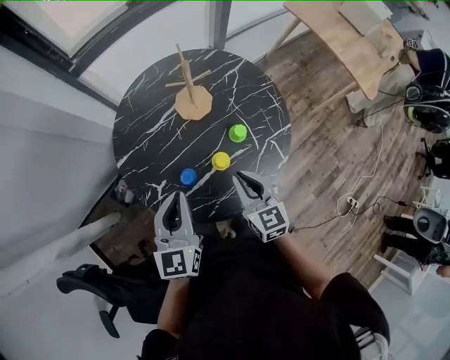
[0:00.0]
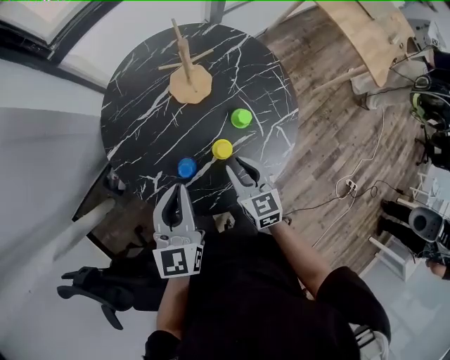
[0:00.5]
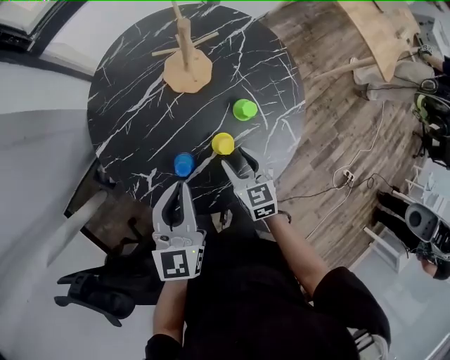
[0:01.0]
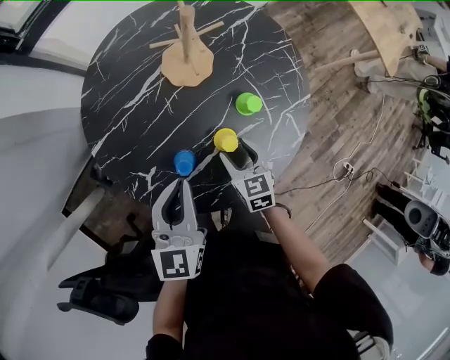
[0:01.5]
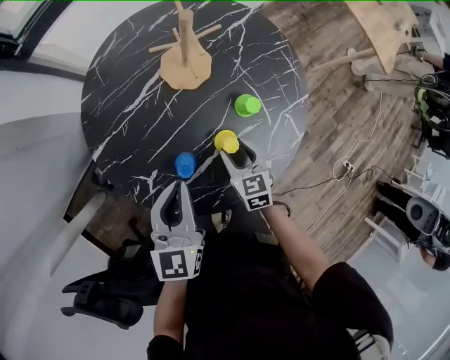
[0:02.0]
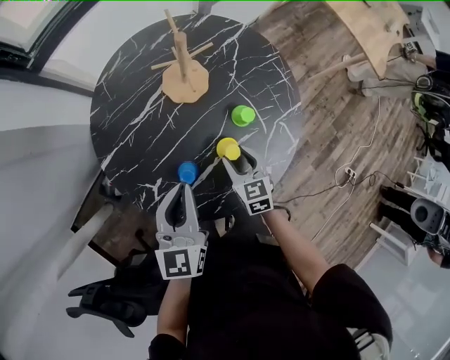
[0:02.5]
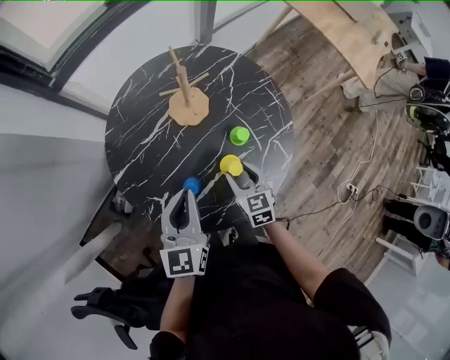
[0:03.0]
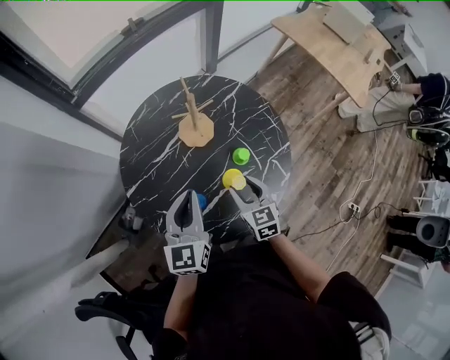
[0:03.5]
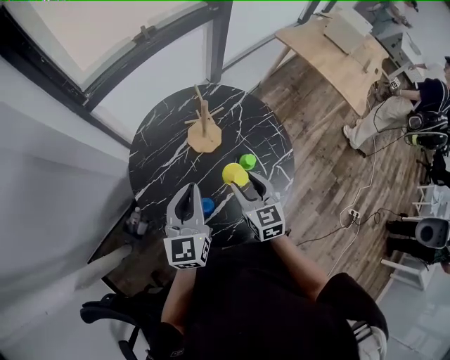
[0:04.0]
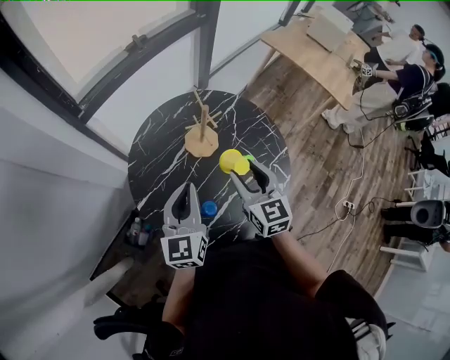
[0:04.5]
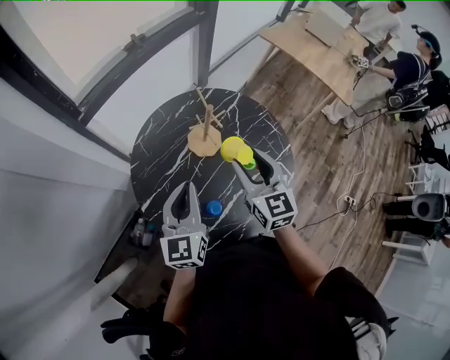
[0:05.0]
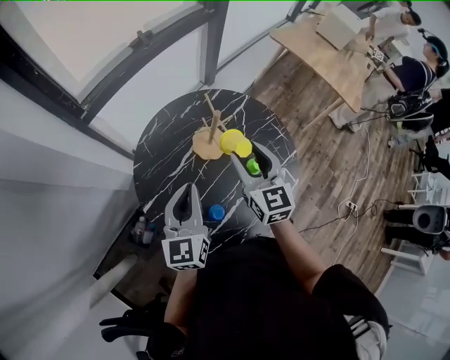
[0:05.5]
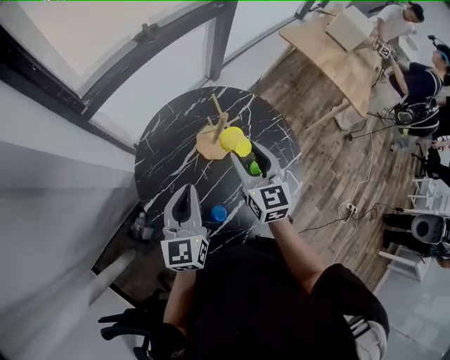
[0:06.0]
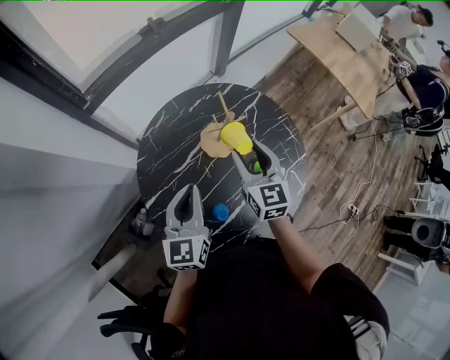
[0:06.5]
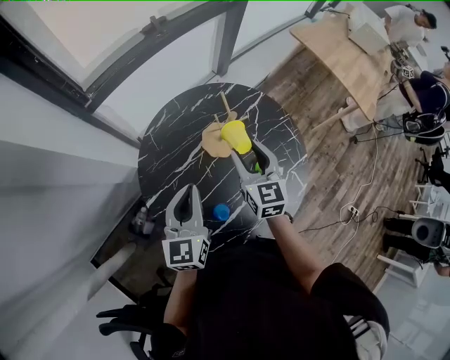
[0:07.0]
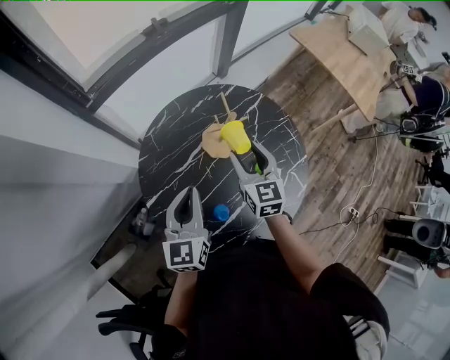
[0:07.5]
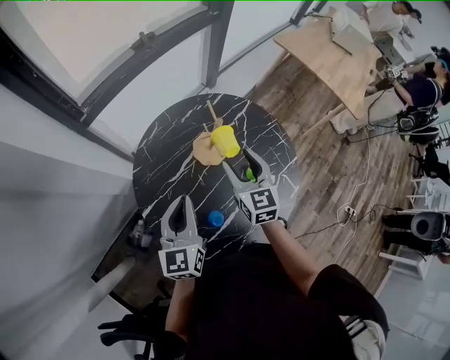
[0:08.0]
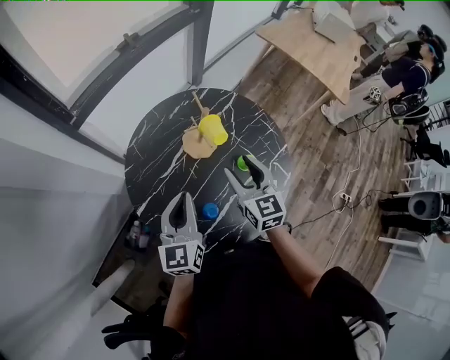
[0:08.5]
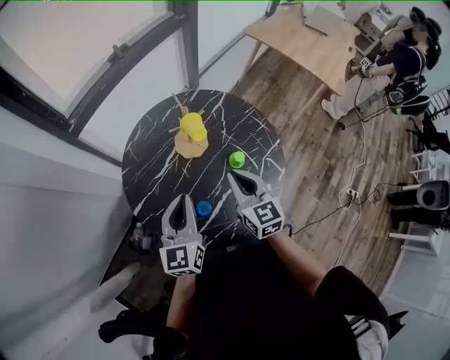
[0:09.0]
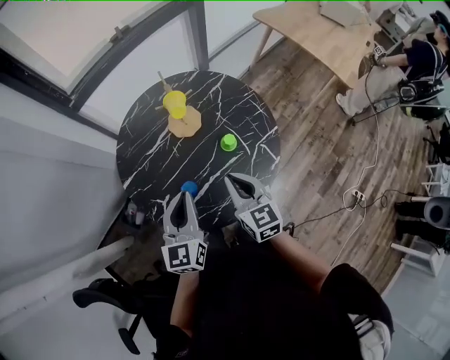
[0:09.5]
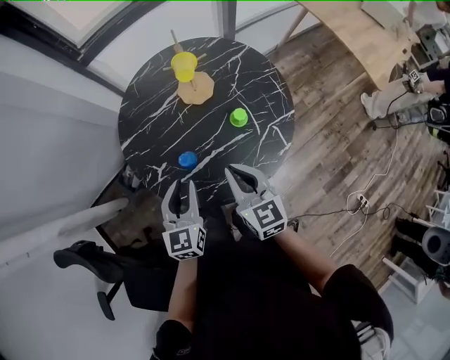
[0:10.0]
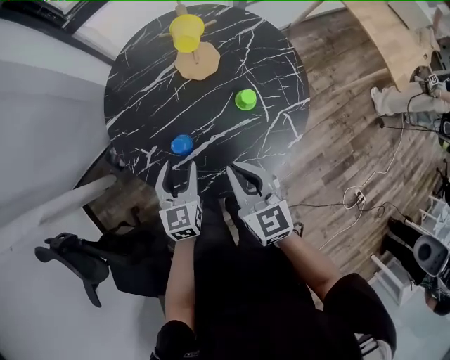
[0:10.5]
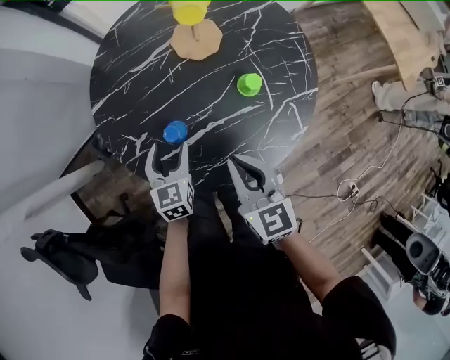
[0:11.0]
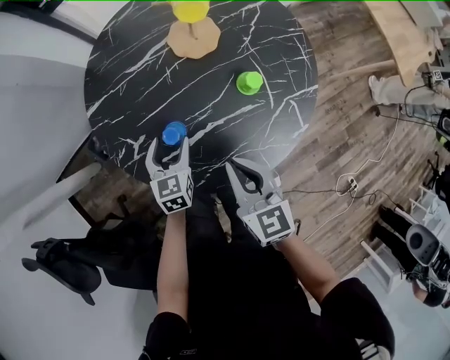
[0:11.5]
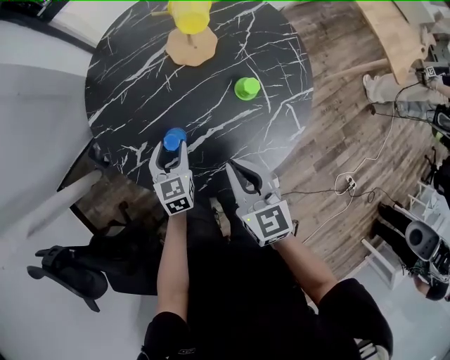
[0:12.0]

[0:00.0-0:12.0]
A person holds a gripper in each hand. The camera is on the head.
0:00.0 to 0:02.0: The left gripper travels downward and forward by roughly 10 cm. Meanwhile the right gripper moves downward, some 20 cm, changes its angle by roughly 20 degrees, and opens.
0:02.0 to 0:04.0: The left gripper goes approximately 15 cm upward, while the right gripper shifts some 25 cm upward.
0:04.0 to 0:06.0: The left gripper goes roughly 10 cm to the left and forward. The right gripper heads forward, upward and to the left, covering roughly 15 cm.
0:06.0 to 0:08.0: The grippers move only a little.
0:08.0 to 0:10.0: The right gripper moves backward, some 25 cm, turns by roughly 20 degrees, and closes up. Meanwhile the left gripper goes some 25 cm backward, to the right and downward.
0:10.0 to 0:12.0: The right gripper is displaced downward by some 10 cm; the left gripper moves downward, approximately 25 cm, and opens its fingers.

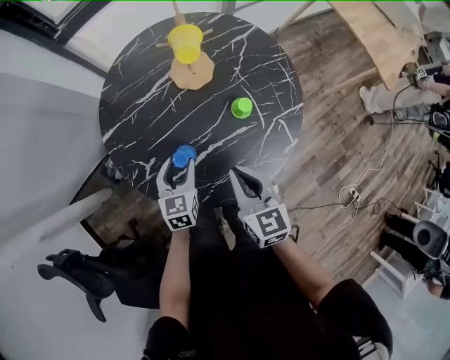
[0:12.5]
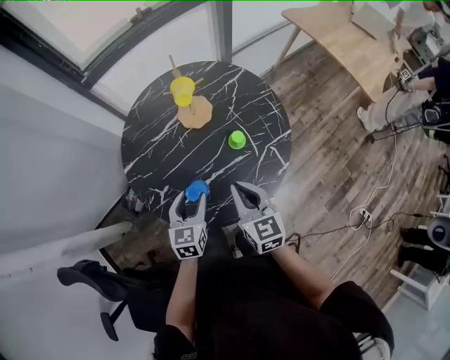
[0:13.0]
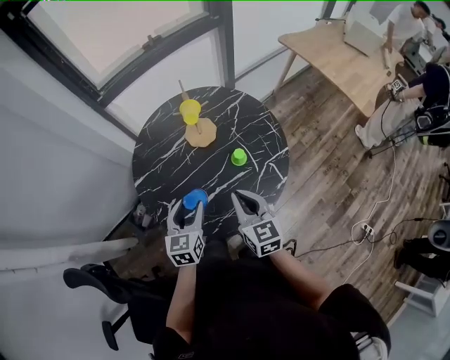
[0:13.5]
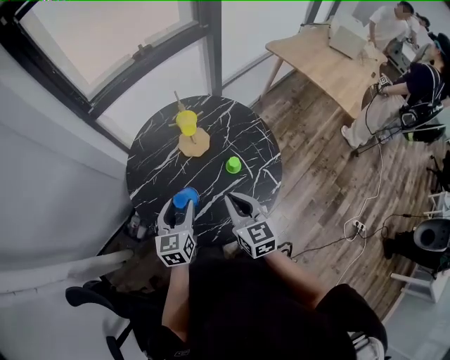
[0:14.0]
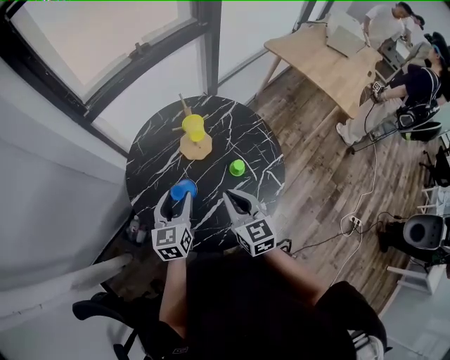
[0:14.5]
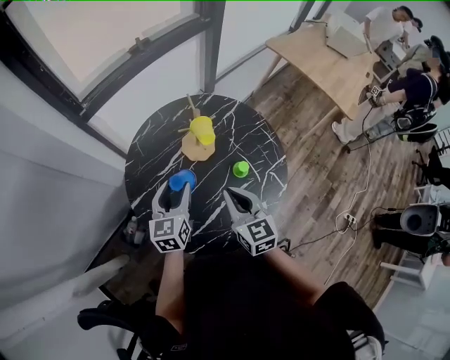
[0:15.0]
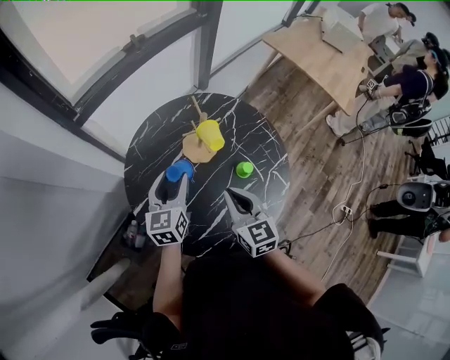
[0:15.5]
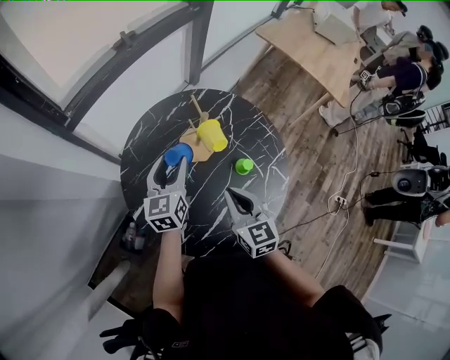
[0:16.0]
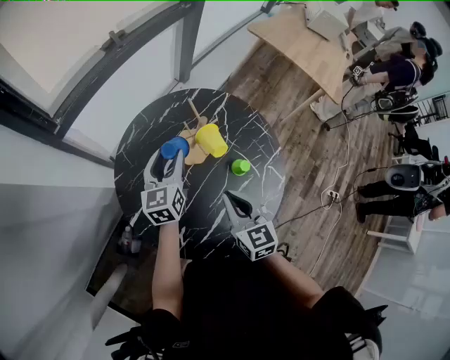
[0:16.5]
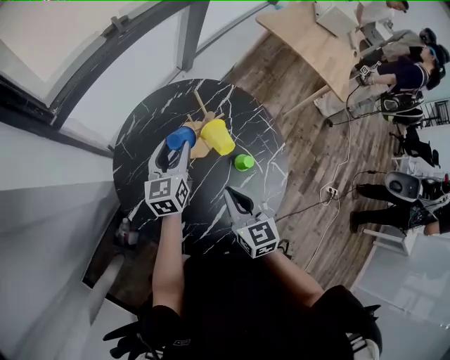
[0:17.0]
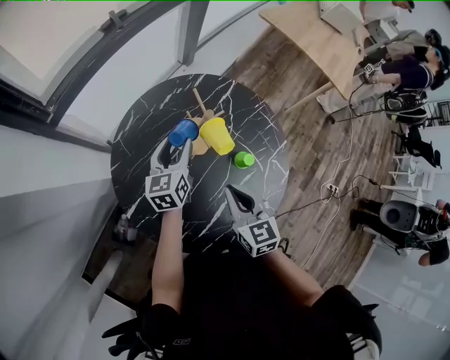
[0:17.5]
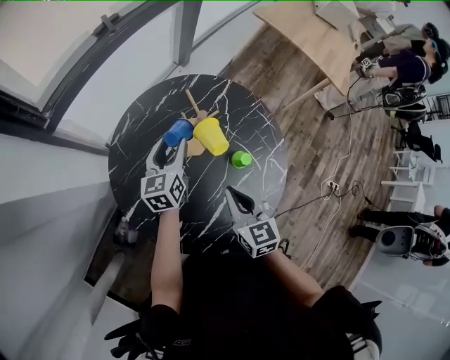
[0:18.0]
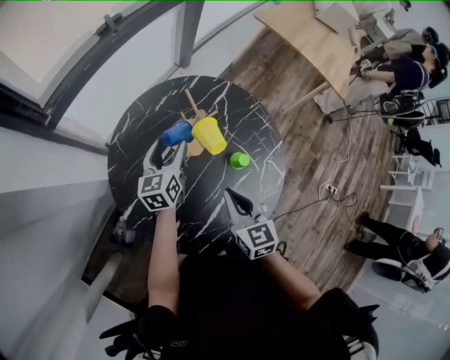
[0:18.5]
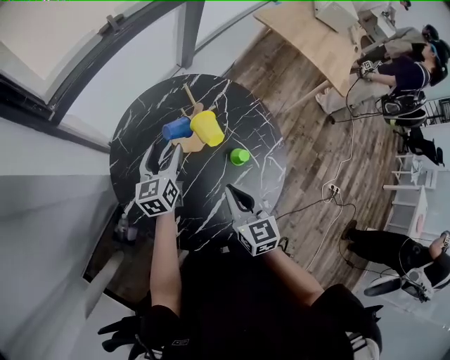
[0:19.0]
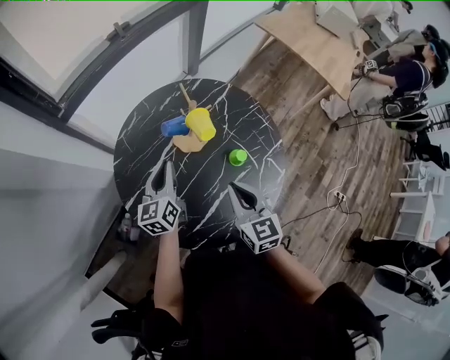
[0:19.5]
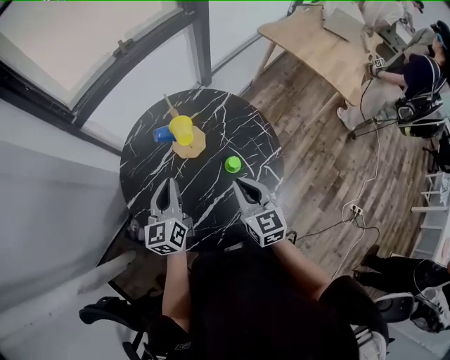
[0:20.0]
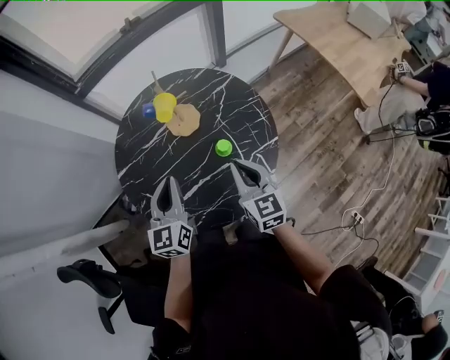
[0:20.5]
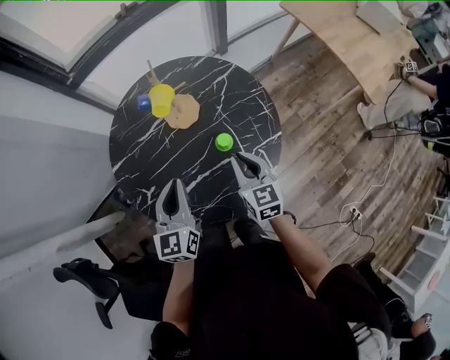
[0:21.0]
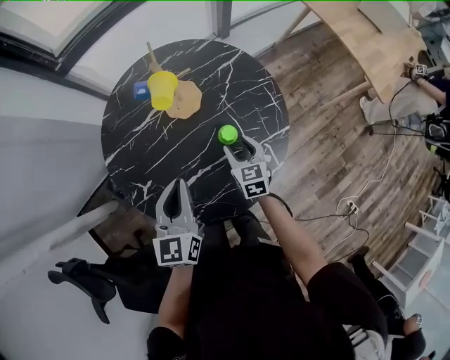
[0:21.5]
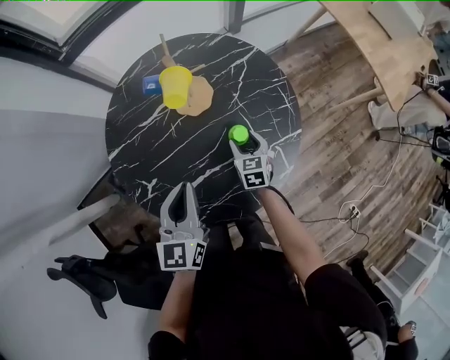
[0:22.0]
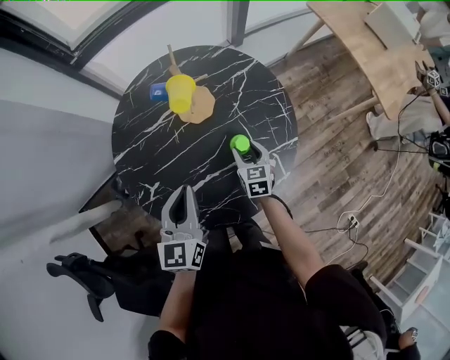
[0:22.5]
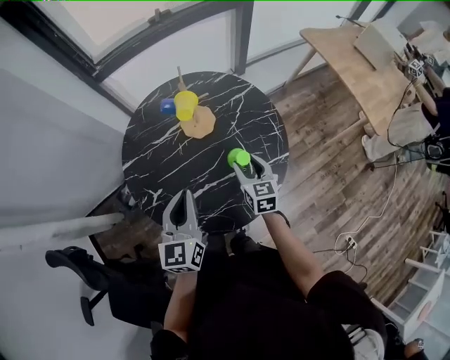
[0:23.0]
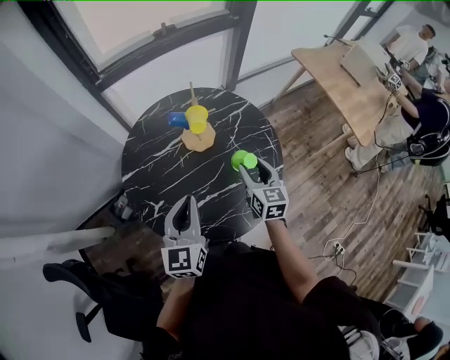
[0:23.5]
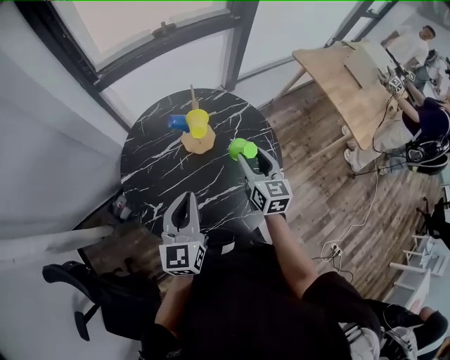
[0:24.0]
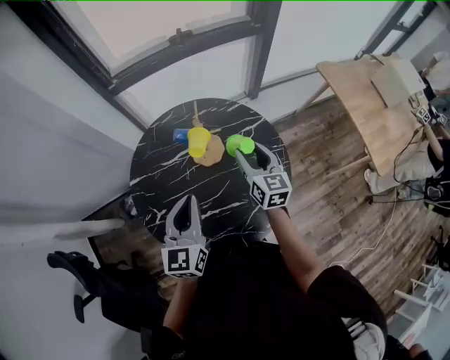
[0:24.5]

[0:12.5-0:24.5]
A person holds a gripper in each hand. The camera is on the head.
0:12.5 to 0:14.5: The right gripper travels upward and forward by approximately 15 cm; the left gripper moves upward, approximately 20 cm.
0:14.5 to 0:16.5: The left gripper travels forward by roughly 20 cm; the right gripper moves forward and to the left, about 10 cm.
0:16.5 to 0:18.5: The left gripper is displaced downward by approximately 5 cm.
0:18.5 to 0:20.5: The left gripper goes about 30 cm backward, upward and to the right, turns by approximately 30 degrees, and closes. Meanwhile the right gripper heads to the right, covering about 20 cm, and turns by roughly 20 degrees.
0:20.5 to 0:22.5: The right gripper shifts roughly 25 cm downward, changes its angle by roughly 20 degrees, and opens its fingers.
0:22.5 to 0:24.5: The left gripper moves upward, roughly 10 cm. Meanwhile the right gripper goes about 25 cm upward and forward, and swivels about 30 degrees.

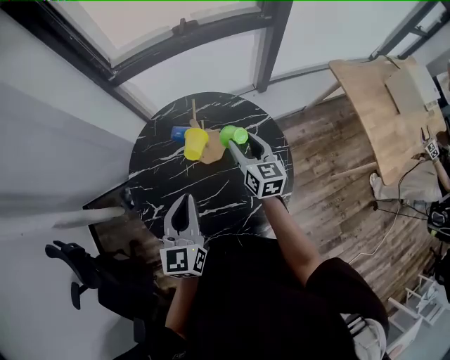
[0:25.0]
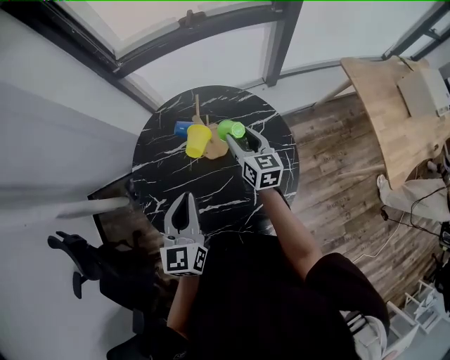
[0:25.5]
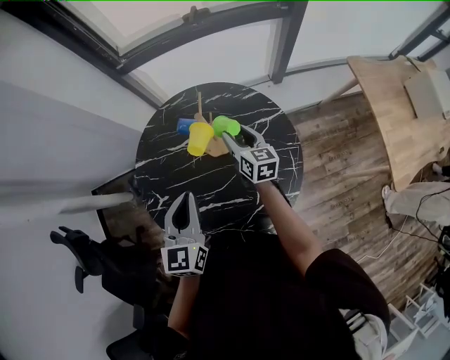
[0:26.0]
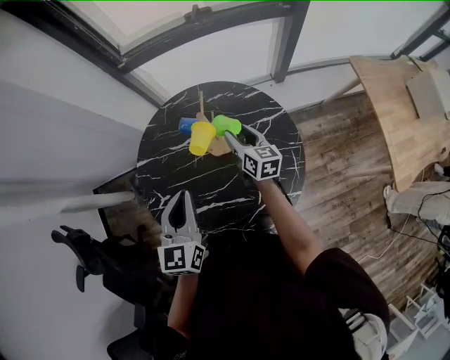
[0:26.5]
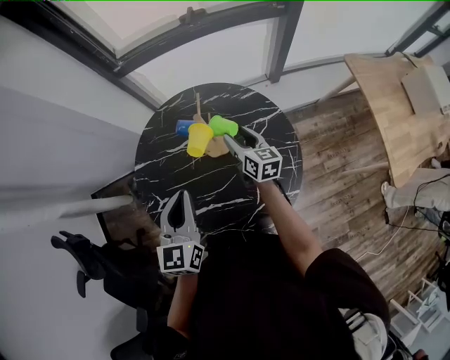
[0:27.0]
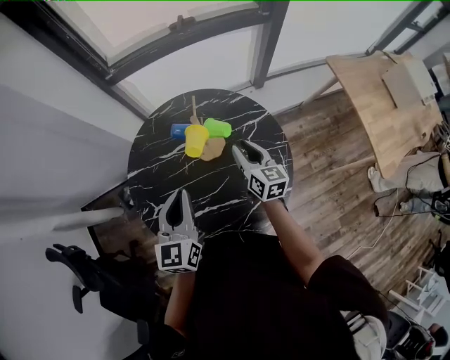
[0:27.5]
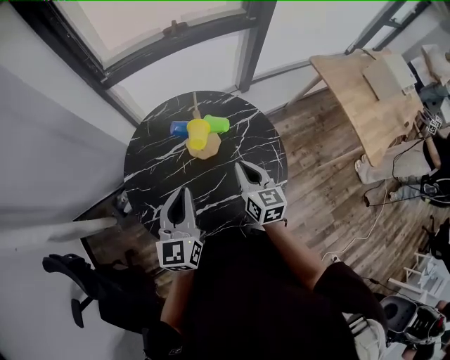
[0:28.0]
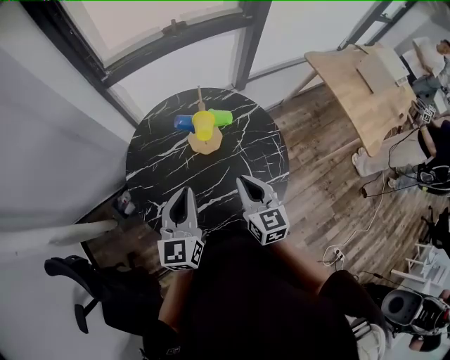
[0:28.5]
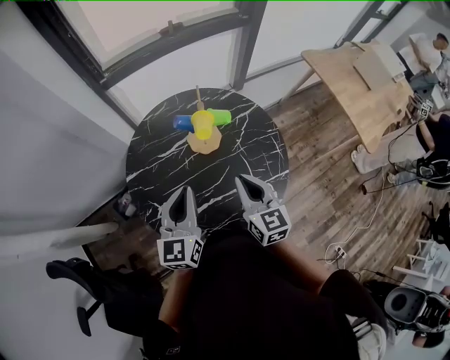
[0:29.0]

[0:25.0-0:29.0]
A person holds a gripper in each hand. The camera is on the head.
0:25.0 to 0:27.0: The right gripper travels downward by some 5 cm.
0:27.0 to 0:29.0: The right gripper goes approximately 25 cm backward and upward, changes its angle by about 20 degrees, and closes, while the left gripper heads to the left, covering roughly 5 cm.
